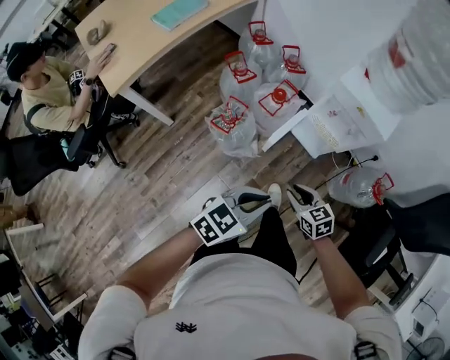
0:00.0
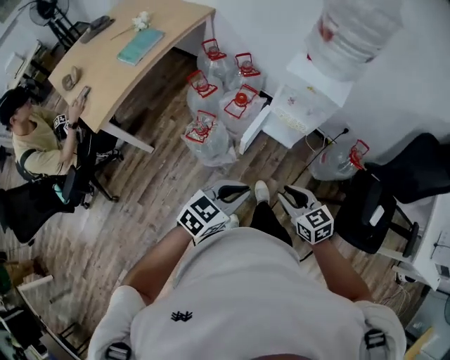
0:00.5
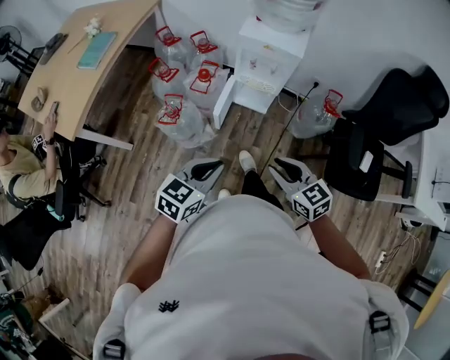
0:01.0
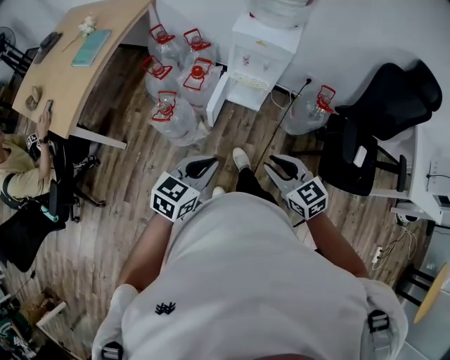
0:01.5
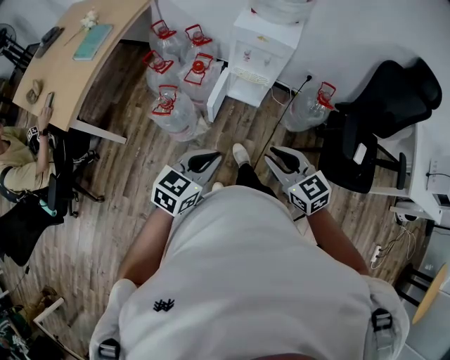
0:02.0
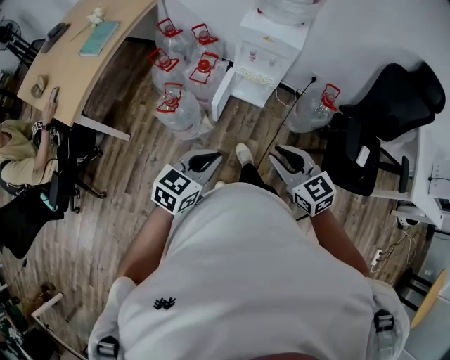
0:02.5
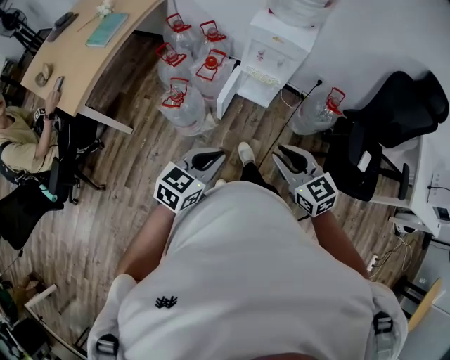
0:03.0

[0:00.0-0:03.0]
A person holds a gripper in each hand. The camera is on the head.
0:00.0 to 0:01.5: The right gripper travels upward and backward by some 25 cm, and swivels approximately 20 degrees. Meanwhile the left gripper travels backward and upward by some 10 cm.
0:01.5 to 0:03.0: The grippers stay close to where they were, moving slightly.

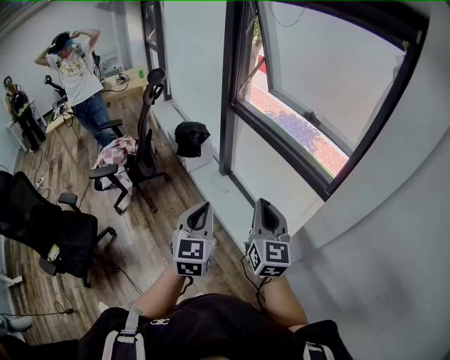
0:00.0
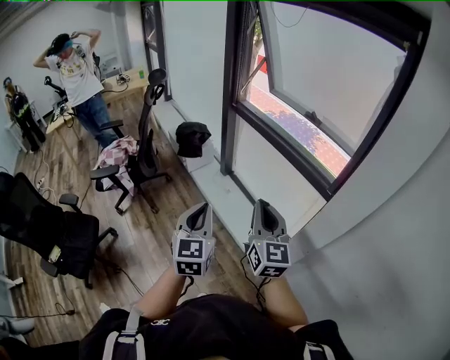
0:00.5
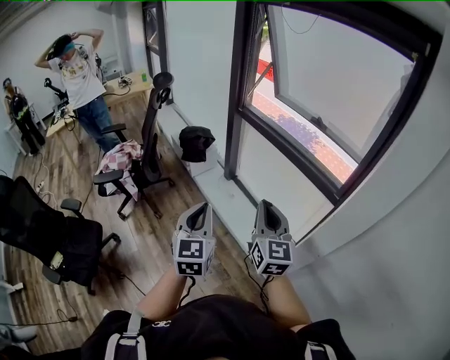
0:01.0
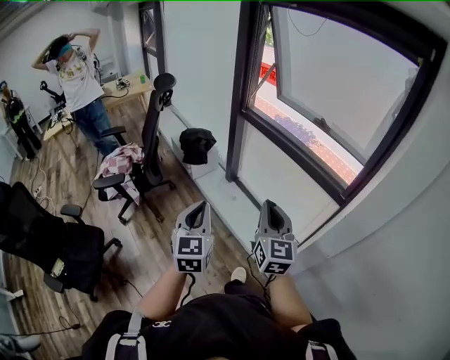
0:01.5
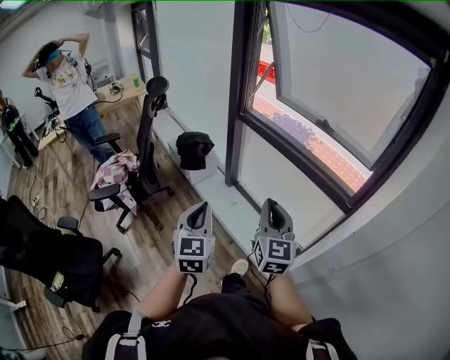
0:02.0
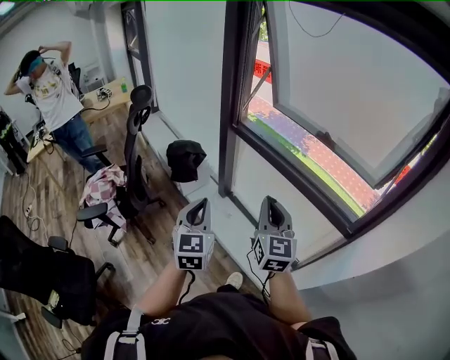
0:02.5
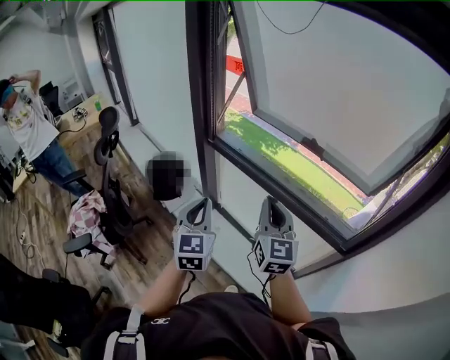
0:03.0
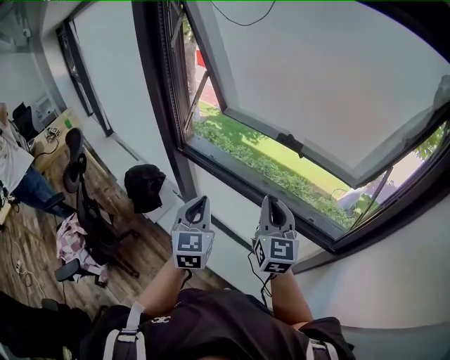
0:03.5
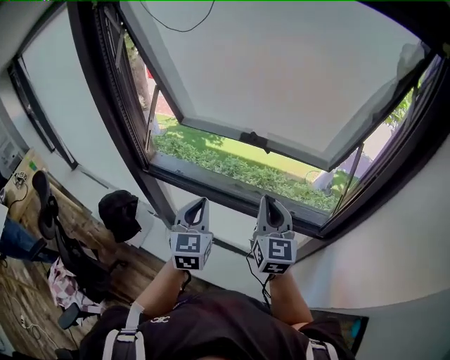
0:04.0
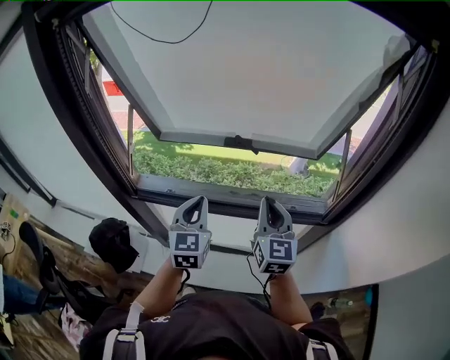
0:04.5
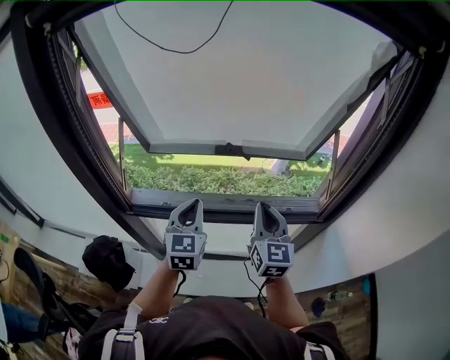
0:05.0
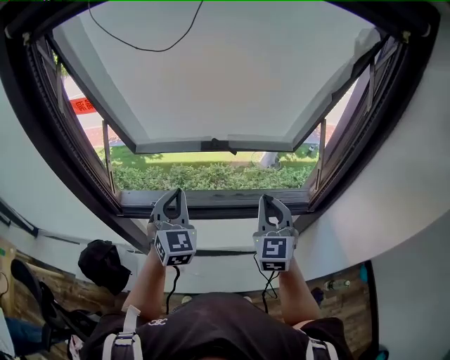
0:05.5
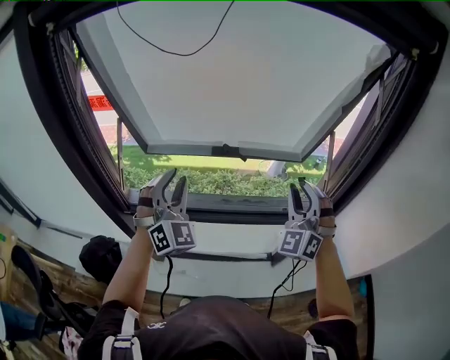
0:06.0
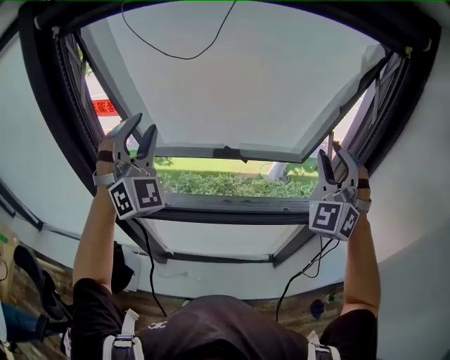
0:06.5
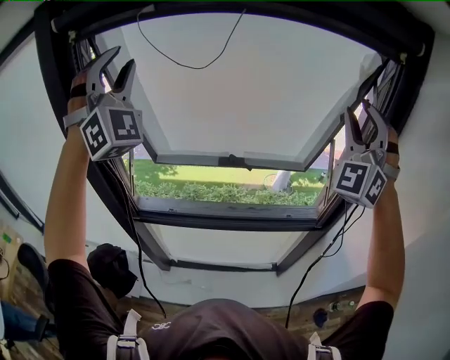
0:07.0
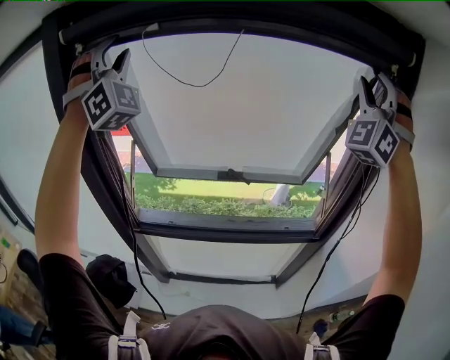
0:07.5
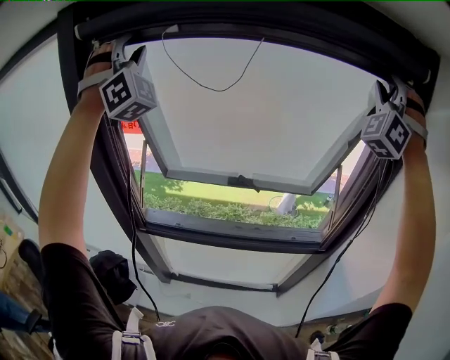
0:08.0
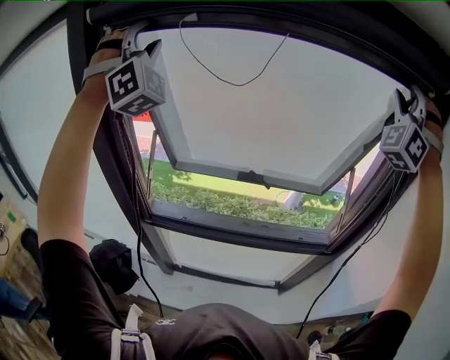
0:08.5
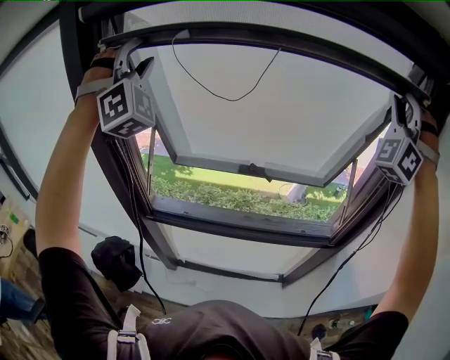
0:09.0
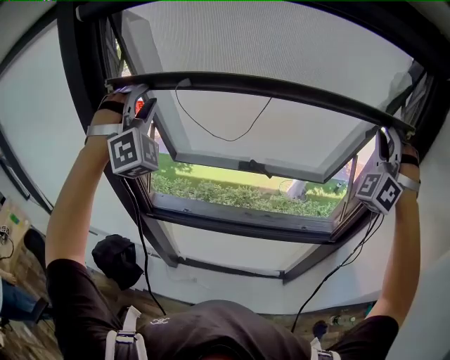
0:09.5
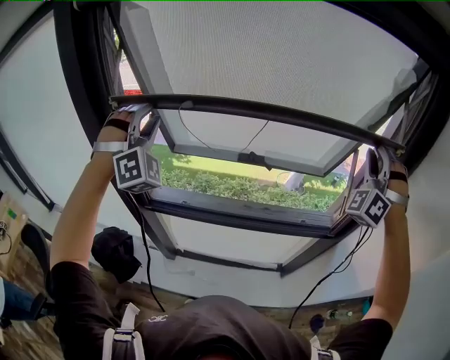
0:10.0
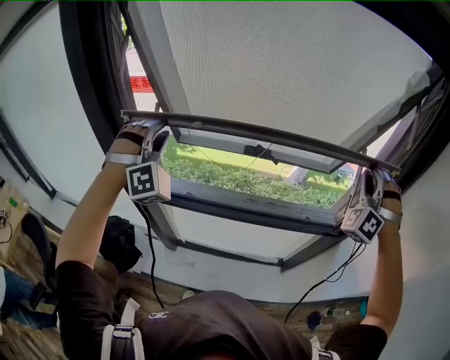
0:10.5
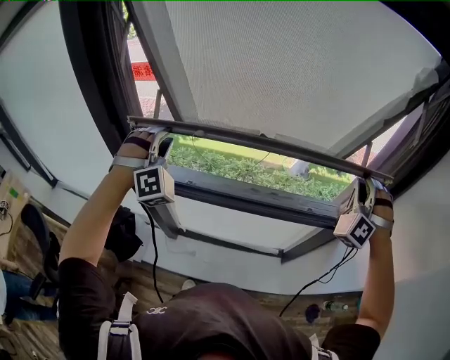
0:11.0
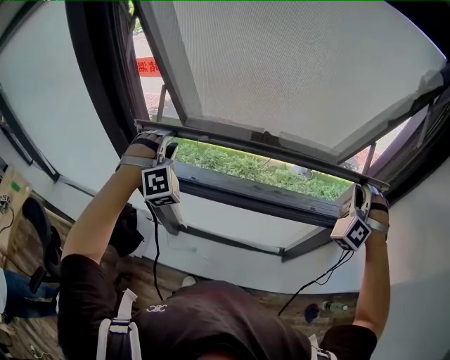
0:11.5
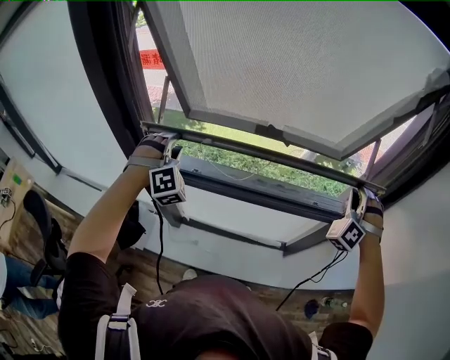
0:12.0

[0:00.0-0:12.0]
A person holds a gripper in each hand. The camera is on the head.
0:00.0 to 0:02.0: The left gripper moves to the left and forward, about 15 cm, while the right gripper heads forward and to the left, covering roughly 15 cm.
0:02.0 to 0:04.0: Both grippers are carried about 50 cm. The left gripper changes its angle by roughly 30 degrees. Meanwhile the right gripper rotates about 30 degrees.
0:04.0 to 0:06.0: The right gripper goes about 10 cm upward, twists approximately 60 degrees counterclockwise, seen from behind, and opens up. The left gripper travels upward, forward and to the left by approximately 15 cm, twists some 50 degrees clockwise, seen from behind, and opens up.
0:06.0 to 0:08.0: The grippers both shift upward by roughly 40 cm. The right gripper changes its angle by roughly 40 degrees; the left gripper changes its angle by some 40 degrees.
0:08.0 to 0:10.0: Both grippers move downward, roughly 25 cm. The left gripper swivels some 30 degrees.
0:10.0 to 0:12.0: Both grippers travel together downward, roughly 20 cm. The right gripper changes its angle by roughly 20 degrees; the left gripper swivels about 20 degrees.

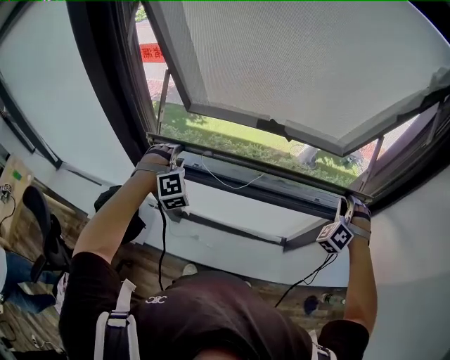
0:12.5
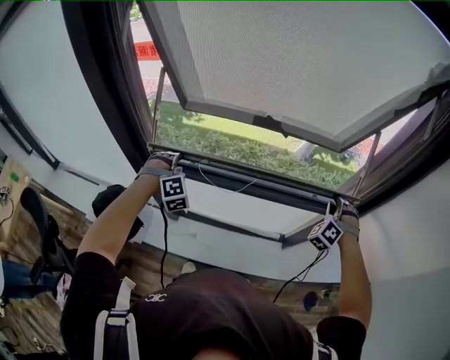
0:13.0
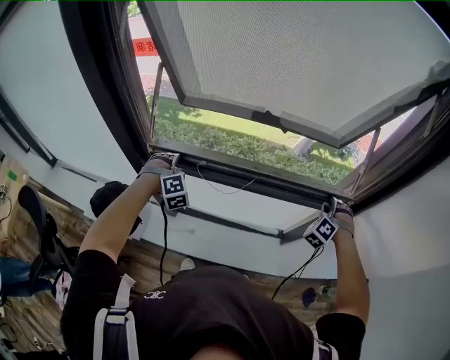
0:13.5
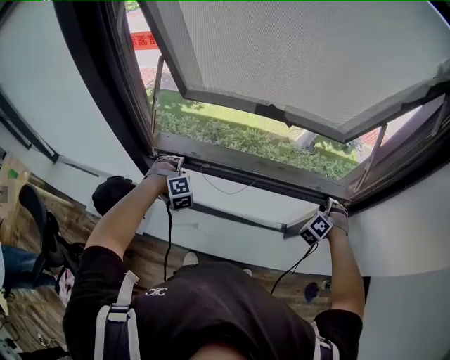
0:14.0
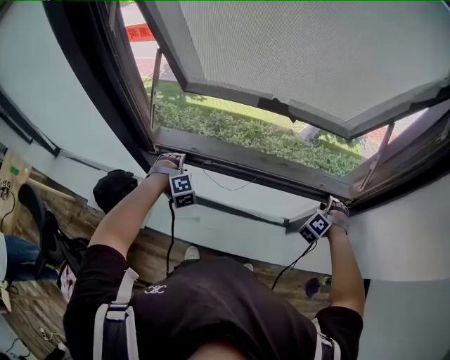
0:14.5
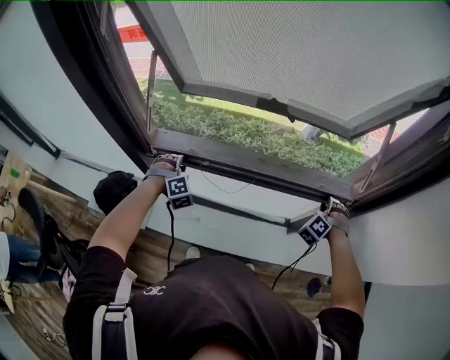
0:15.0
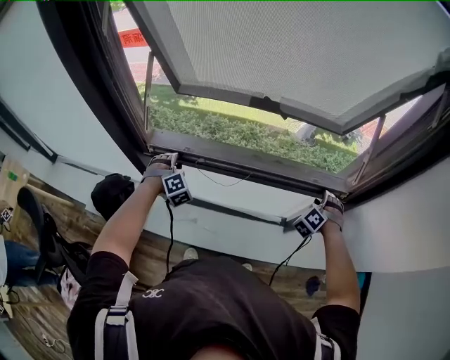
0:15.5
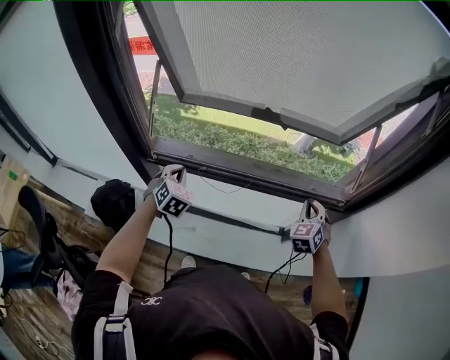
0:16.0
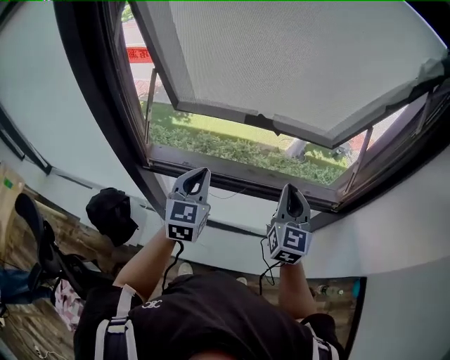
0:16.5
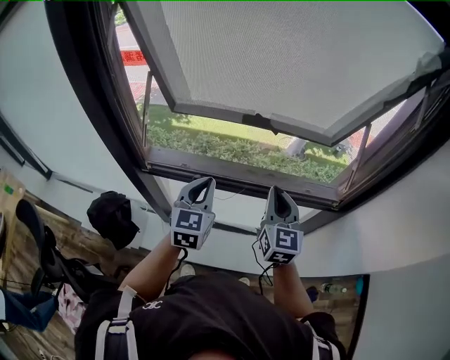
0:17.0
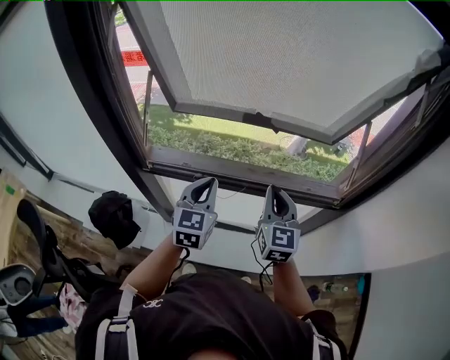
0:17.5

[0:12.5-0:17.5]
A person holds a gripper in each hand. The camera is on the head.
0:12.5 to 0:15.0: Both grippers move downward, some 15 cm. The right gripper rotates approximately 20 degrees.
0:15.0 to 0:17.5: The left gripper moves upward and to the right, about 25 cm, twists roughly 70 degrees counterclockwise, seen from behind, and closes up. Meanwhile the right gripper heads to the left and upward, covering some 30 cm, tilts its fingers approximately 30 degrees upward, and closes up.

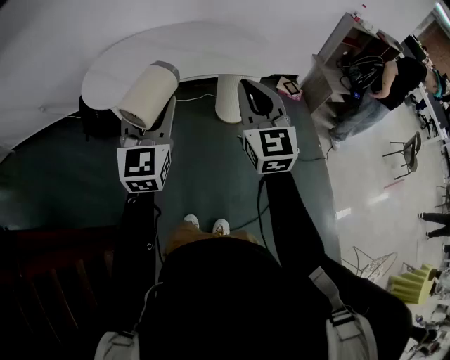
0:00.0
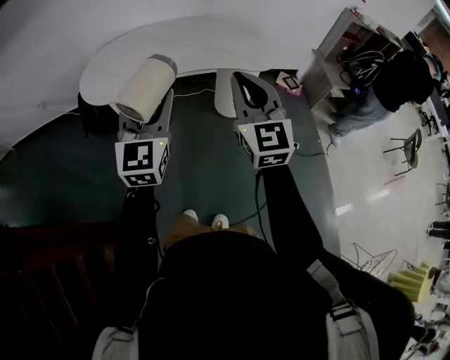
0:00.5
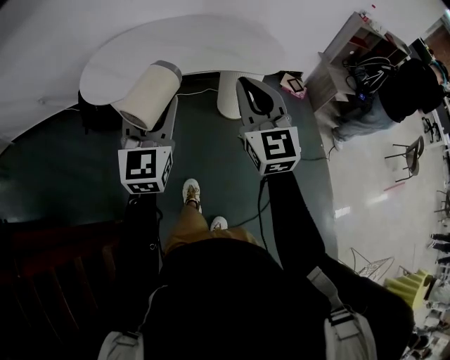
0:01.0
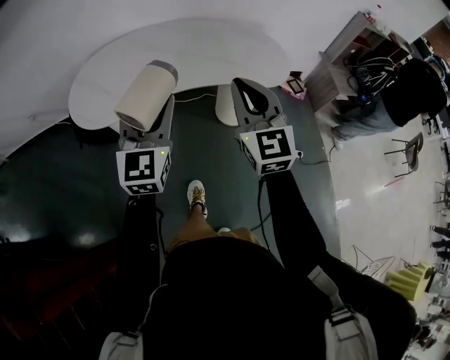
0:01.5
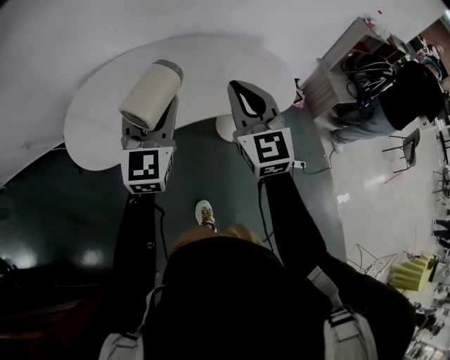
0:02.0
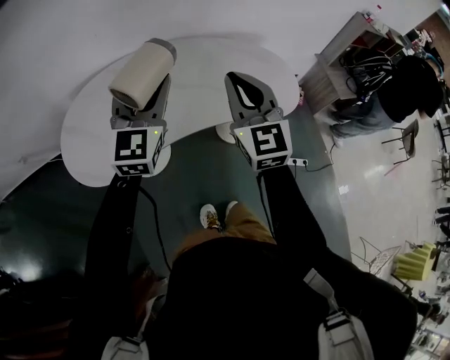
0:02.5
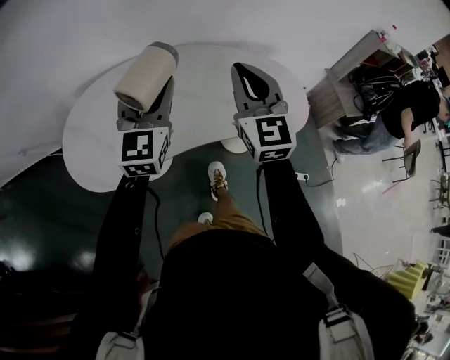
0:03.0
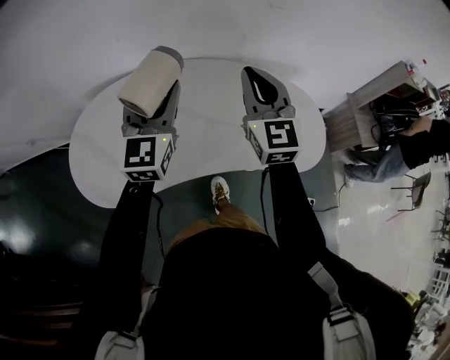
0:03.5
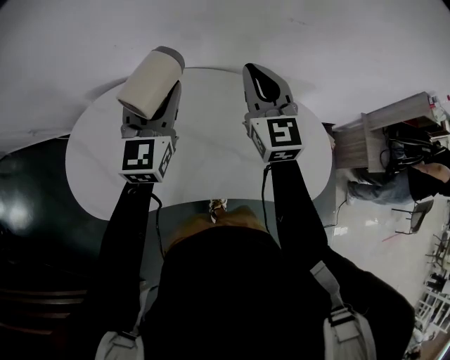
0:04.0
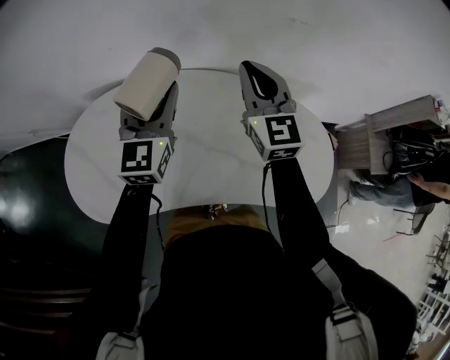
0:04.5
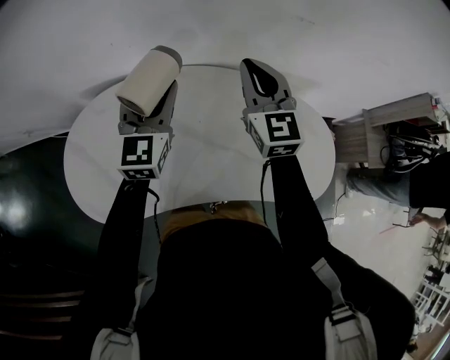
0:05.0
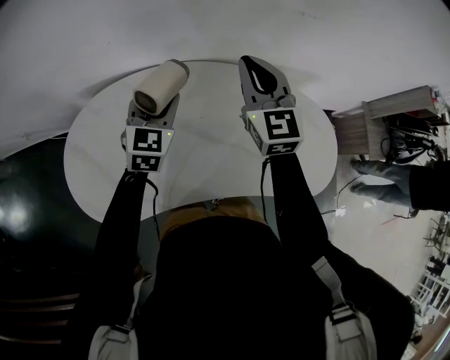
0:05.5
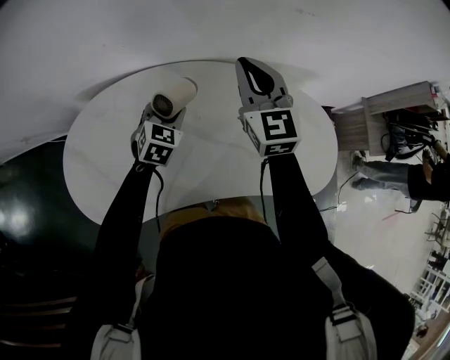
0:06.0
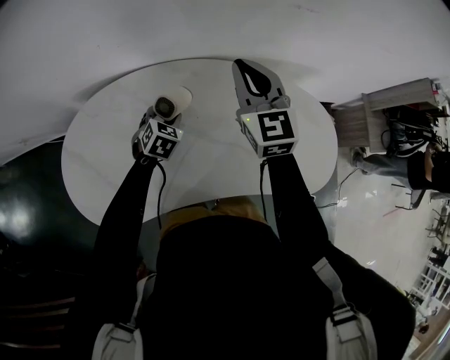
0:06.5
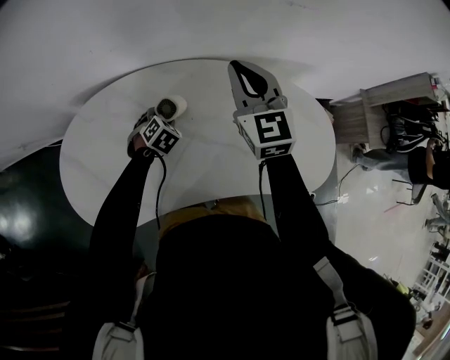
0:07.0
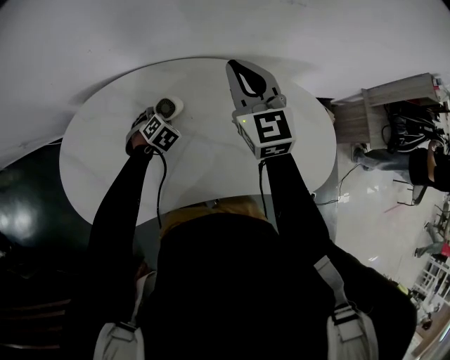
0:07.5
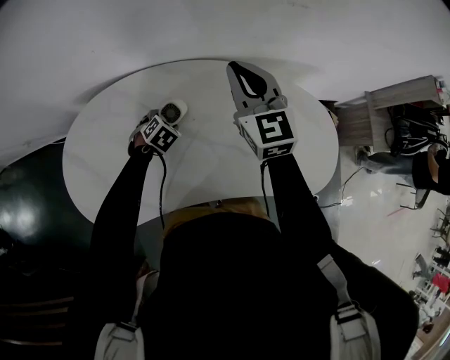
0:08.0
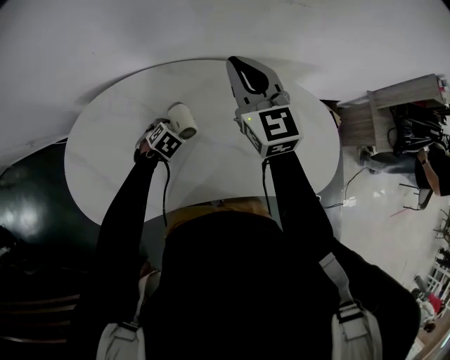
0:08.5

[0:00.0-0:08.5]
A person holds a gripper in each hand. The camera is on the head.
0:00.0 to 0:02.0: The grippers both shift forward by roughly 30 cm.
0:02.0 to 0:04.0: The two grippers go approximately 35 cm forward.
0:04.0 to 0:06.5: The right gripper shifts by about 5 cm; the left gripper shifts about 30 cm downward, and points its fingers approximately 50 degrees further downward.
0:06.5 to 0:08.5: The left gripper goes roughly 10 cm downward, and turns by approximately 20 degrees.
